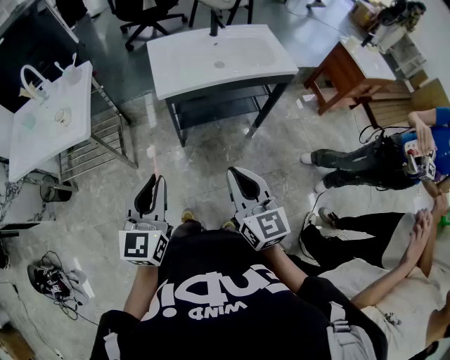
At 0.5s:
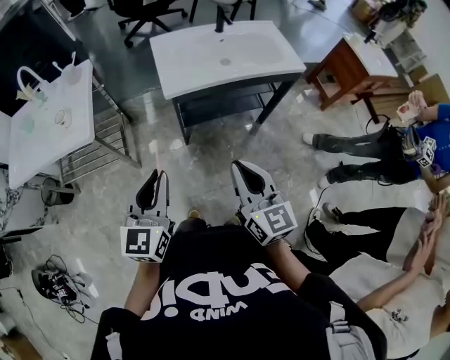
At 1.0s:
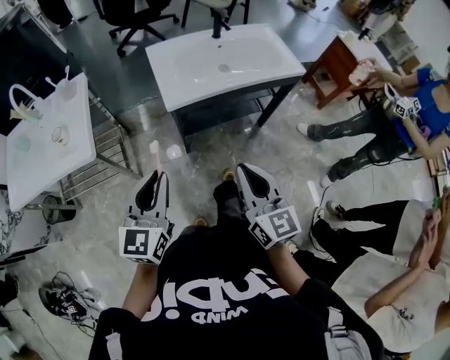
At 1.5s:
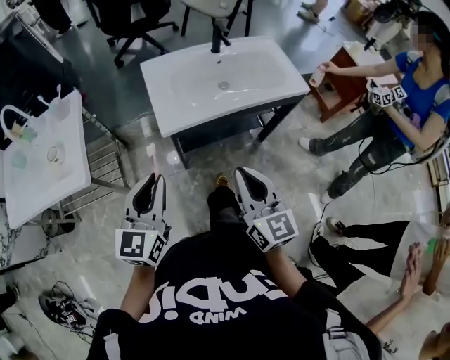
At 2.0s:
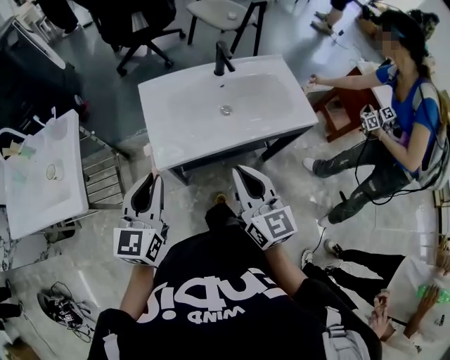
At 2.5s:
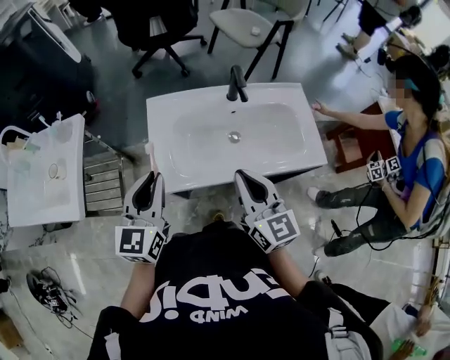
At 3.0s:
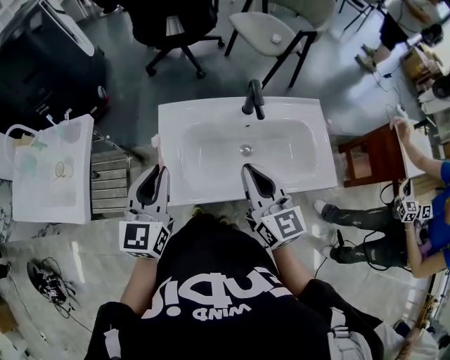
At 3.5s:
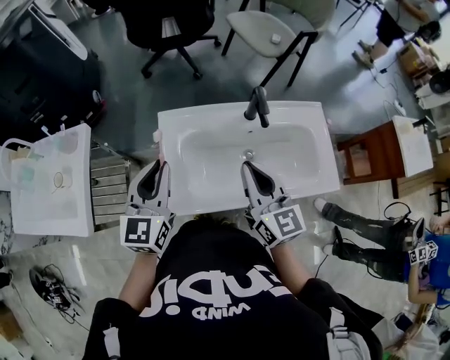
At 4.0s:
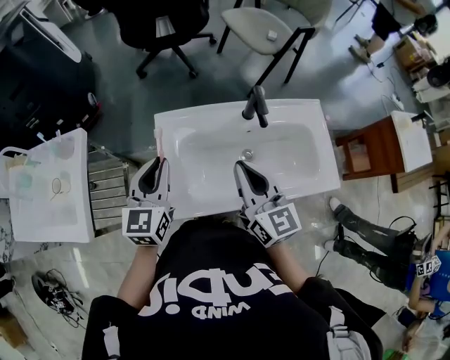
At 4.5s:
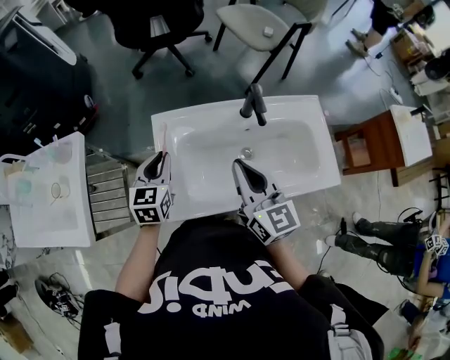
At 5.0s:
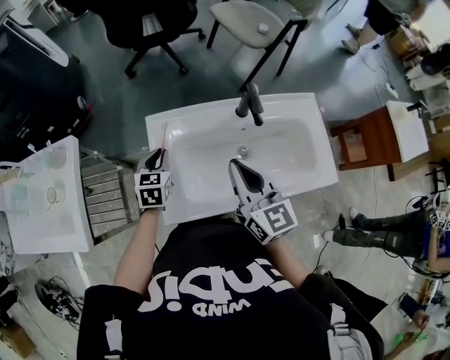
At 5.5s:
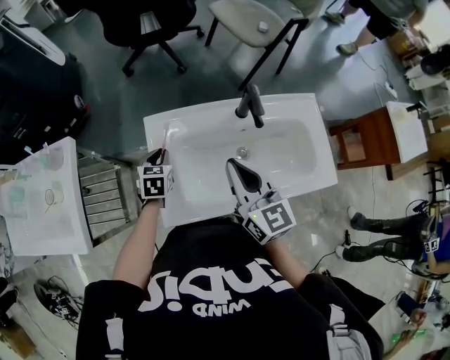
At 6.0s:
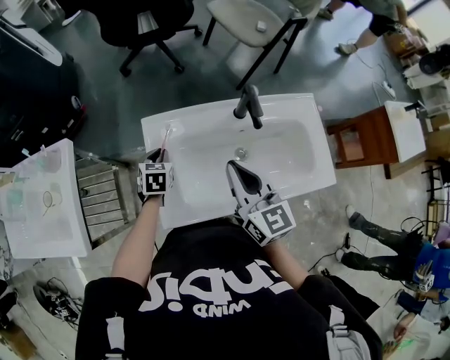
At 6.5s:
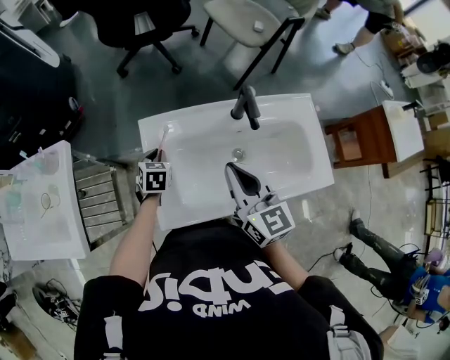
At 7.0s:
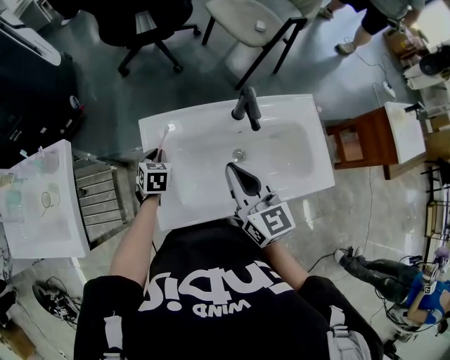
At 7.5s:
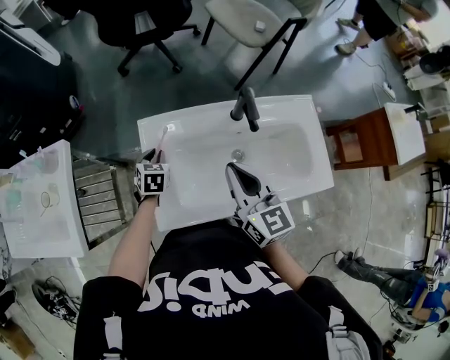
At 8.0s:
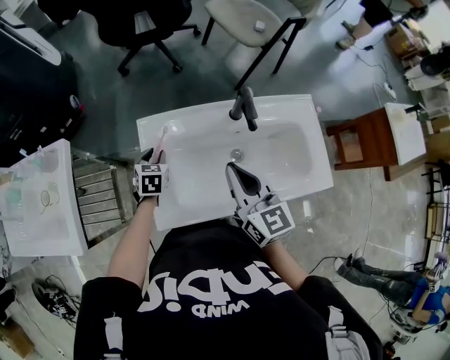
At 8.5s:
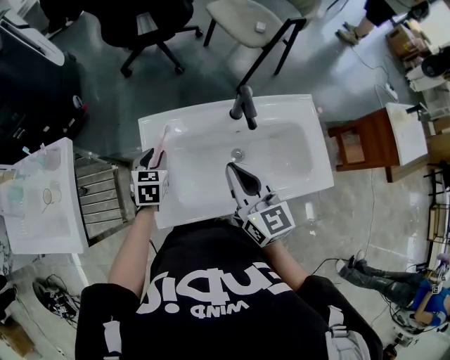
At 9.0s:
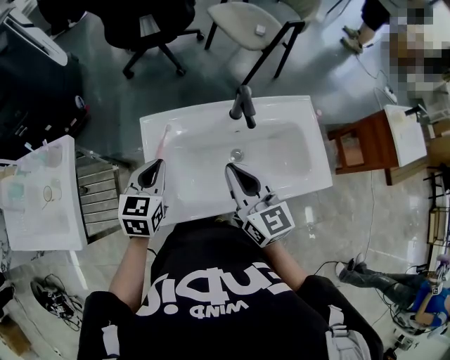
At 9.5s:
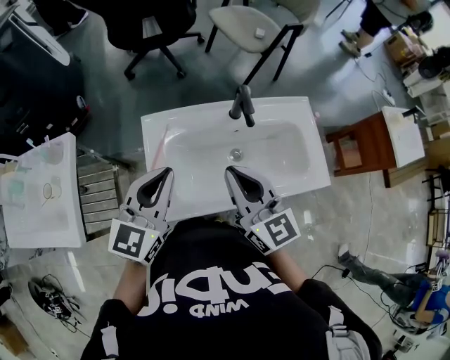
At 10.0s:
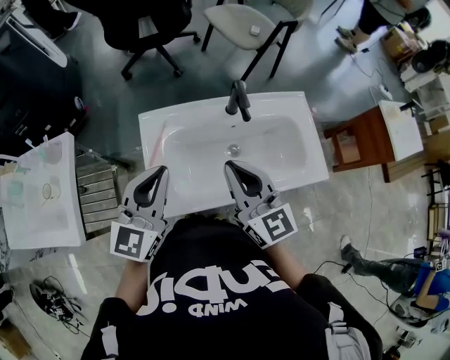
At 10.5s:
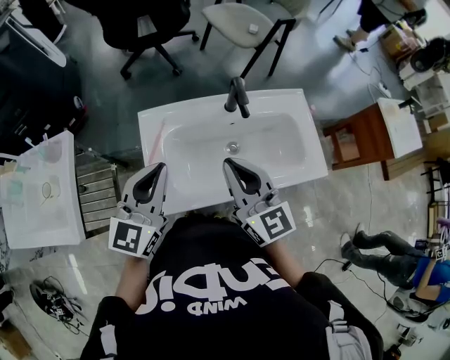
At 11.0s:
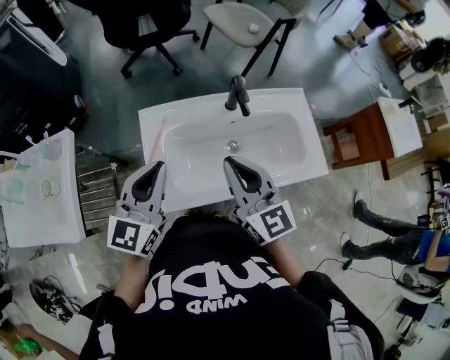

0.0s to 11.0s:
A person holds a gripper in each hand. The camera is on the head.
0.0s to 2.0s: Both grippers move forward, approximately 35 cm.
2.0s to 3.5s: The grippers both shift forward by about 25 cm.
3.5s to 5.5s: The left gripper is displaced downward and forward by about 25 cm, and tilts its fingers roughly 40 degrees downward, while the right gripper moves some 5 cm.
5.5s to 7.5s: There are only small adjustments of the grippers.
7.5s to 9.0s: The left gripper goes roughly 20 cm upward and backward, and turns by about 20 degrees.
9.0s to 11.0s: The left gripper travels upward and backward by approximately 15 cm, and turns by about 30 degrees, while the right gripper is displaced upward by roughly 5 cm.

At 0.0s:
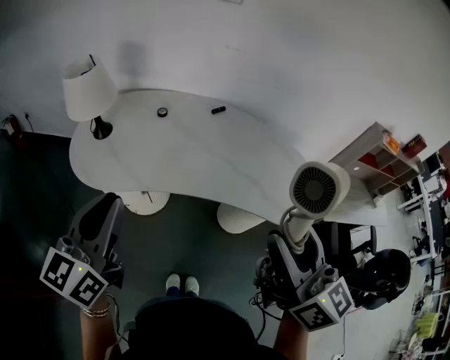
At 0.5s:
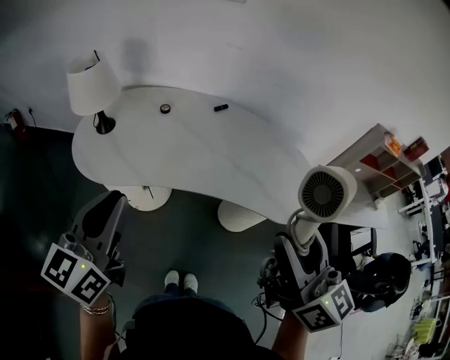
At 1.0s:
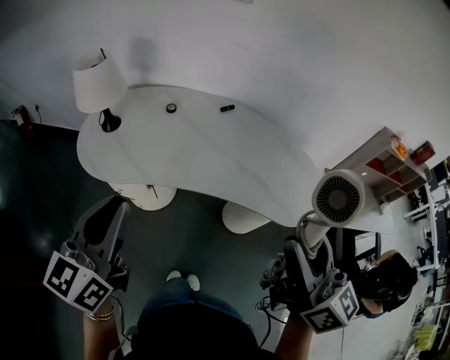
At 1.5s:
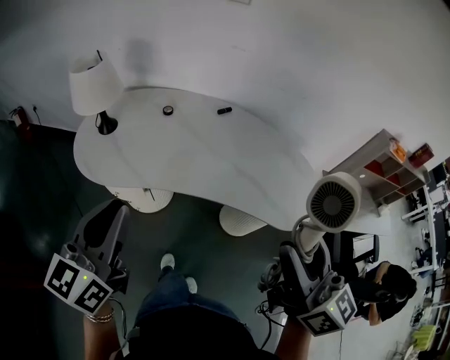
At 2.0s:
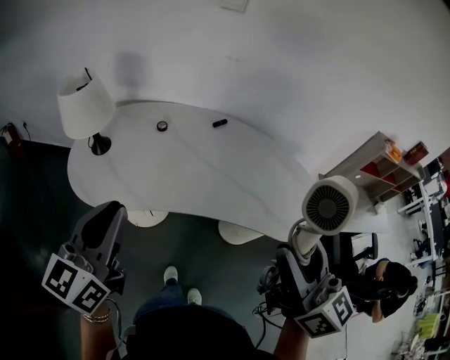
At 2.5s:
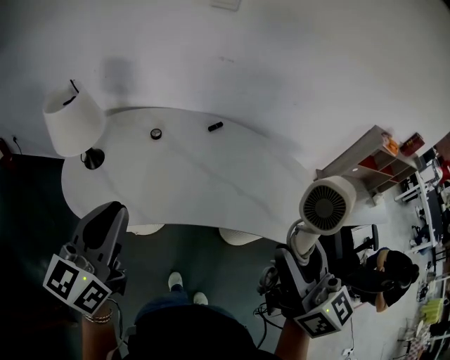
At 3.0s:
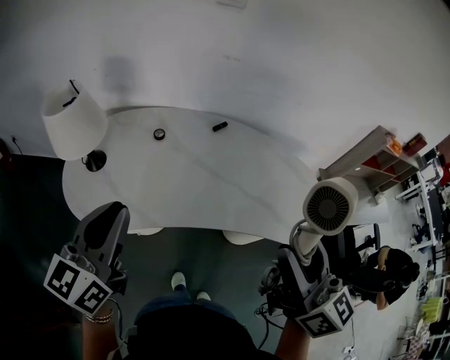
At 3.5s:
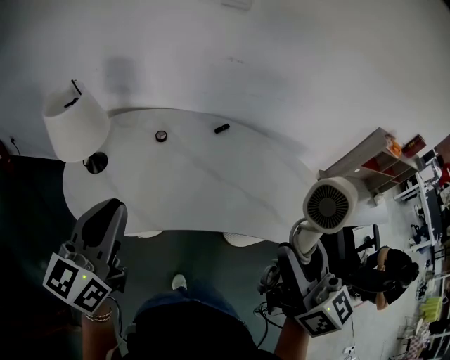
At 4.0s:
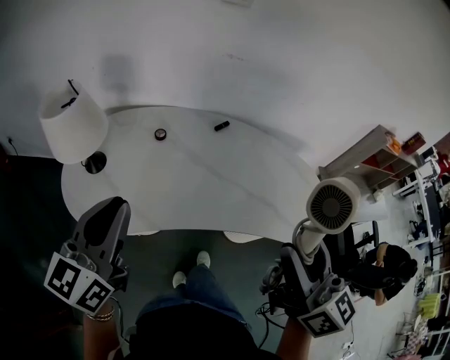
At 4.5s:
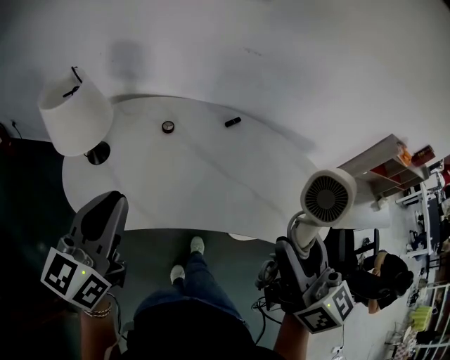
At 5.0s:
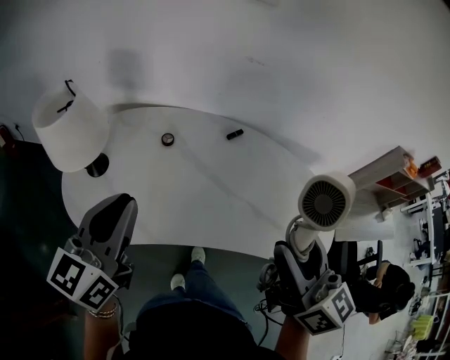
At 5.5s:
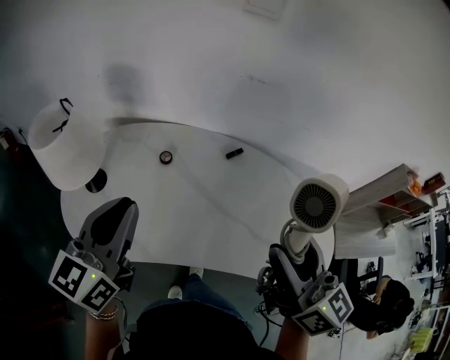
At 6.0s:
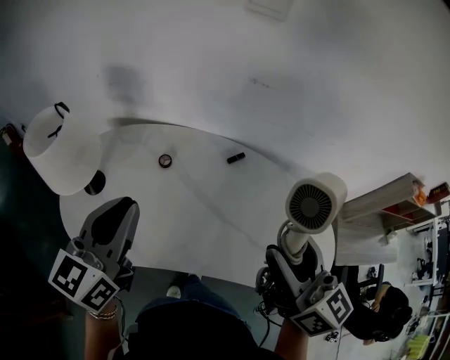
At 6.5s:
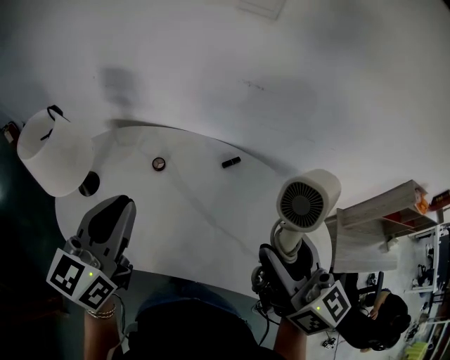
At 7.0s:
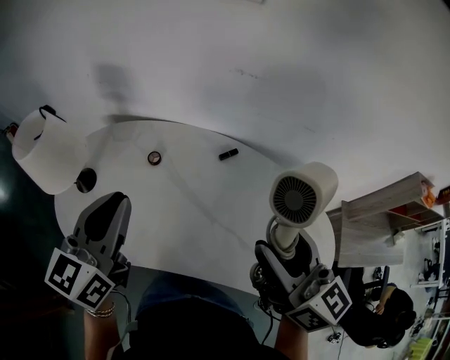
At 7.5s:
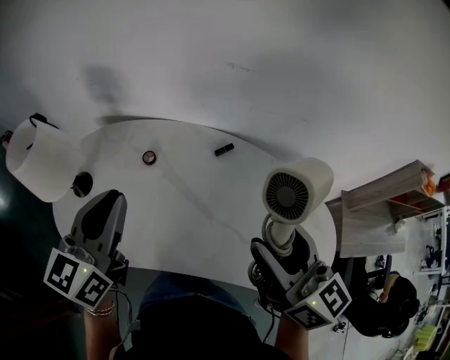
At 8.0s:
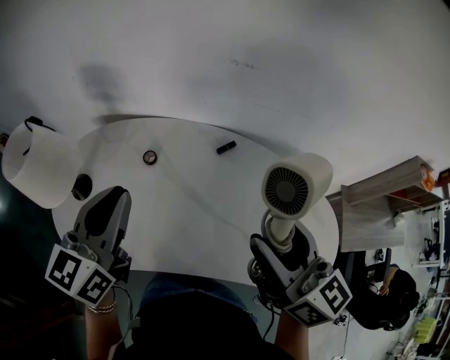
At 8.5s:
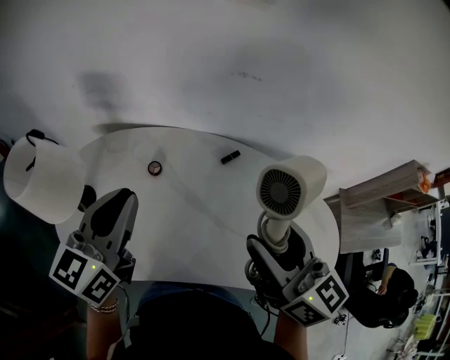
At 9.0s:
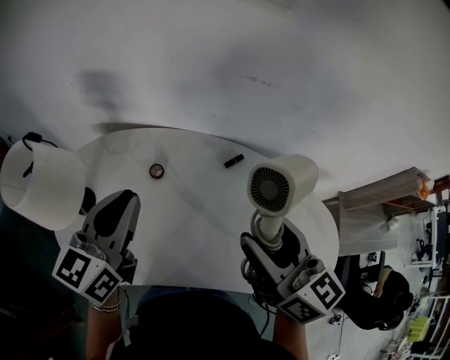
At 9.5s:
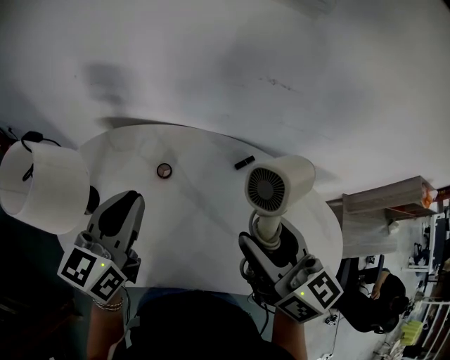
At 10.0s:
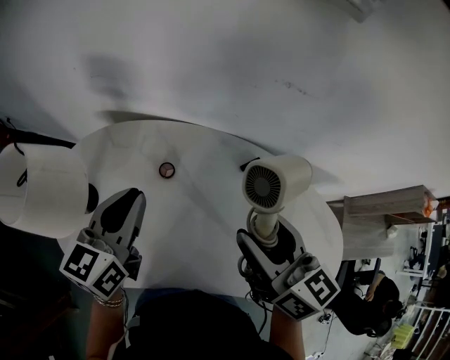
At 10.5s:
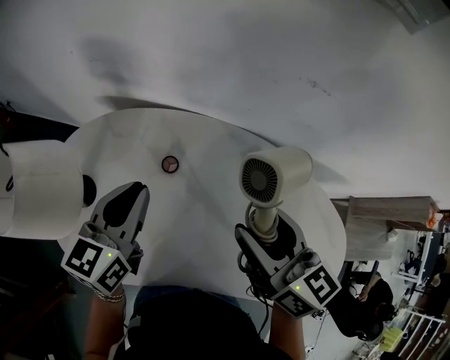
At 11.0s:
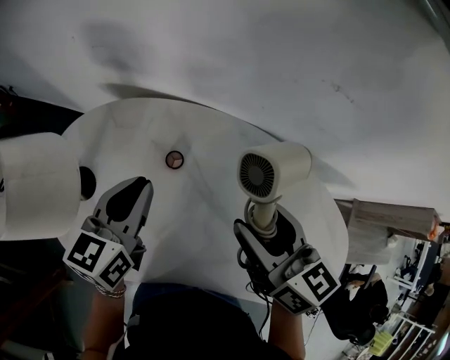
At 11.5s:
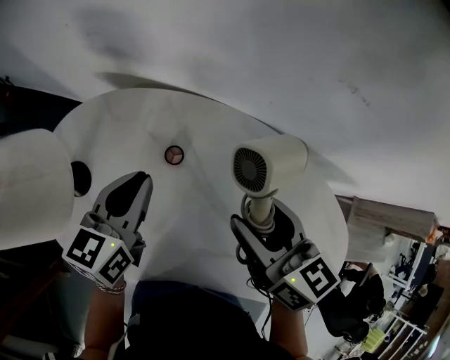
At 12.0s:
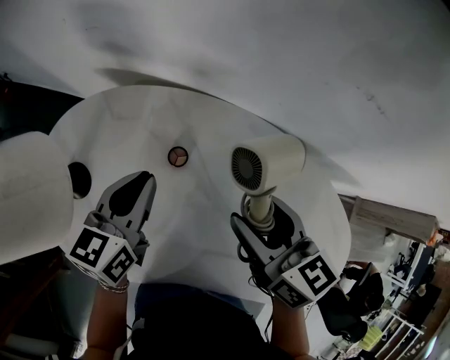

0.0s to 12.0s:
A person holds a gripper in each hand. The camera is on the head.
0.0s to 2.0s: The left gripper moves forward, approximately 5 cm.
2.0s to 4.0s: The left gripper is displaced forward by some 10 cm, while the right gripper is displaced forward and to the left by approximately 10 cm.
4.0s to 6.0s: The two grippers go roughly 15 cm forward.
6.0s to 8.0s: The left gripper moves forward, some 5 cm; the right gripper changes place by some 5 cm.
8.0s to 10.0s: The right gripper moves forward, to the left and downward, about 15 cm, while the left gripper shifts roughly 15 cm forward, downward and to the left.
10.0s to 12.0s: Both grippers travel together downward and forward, some 15 cm.

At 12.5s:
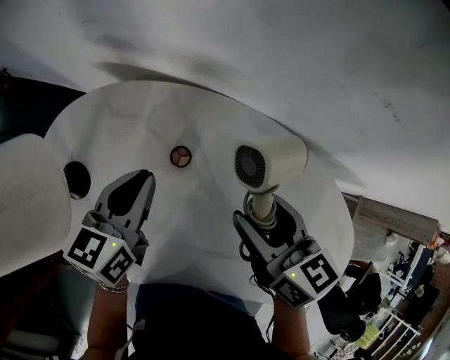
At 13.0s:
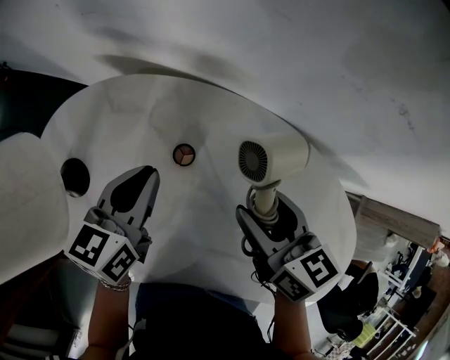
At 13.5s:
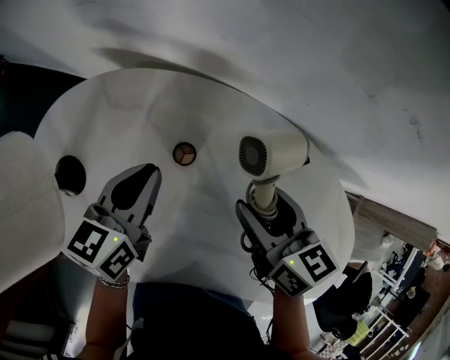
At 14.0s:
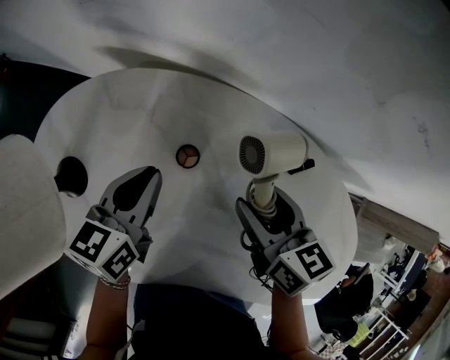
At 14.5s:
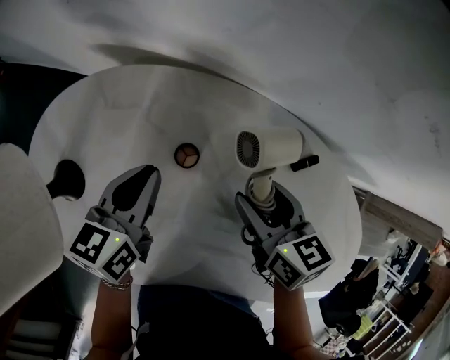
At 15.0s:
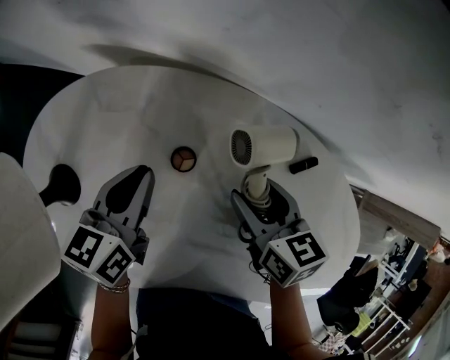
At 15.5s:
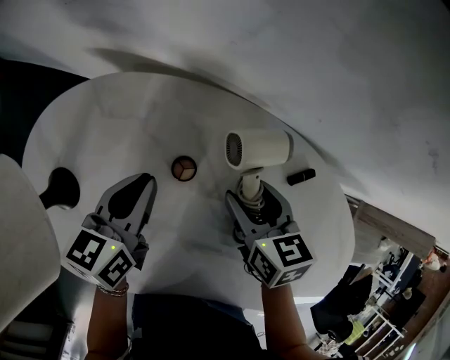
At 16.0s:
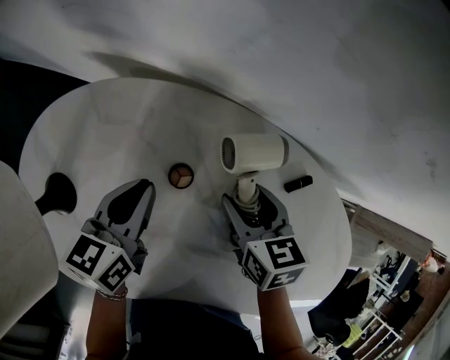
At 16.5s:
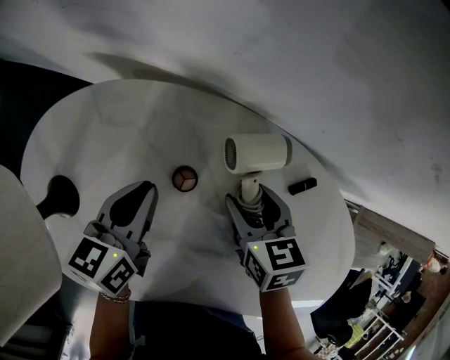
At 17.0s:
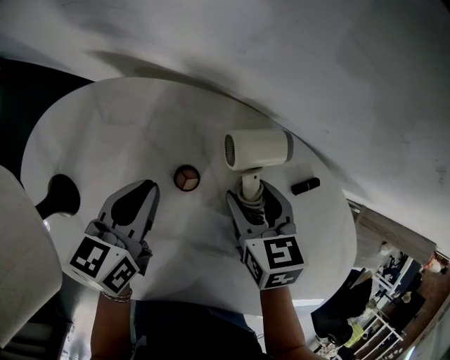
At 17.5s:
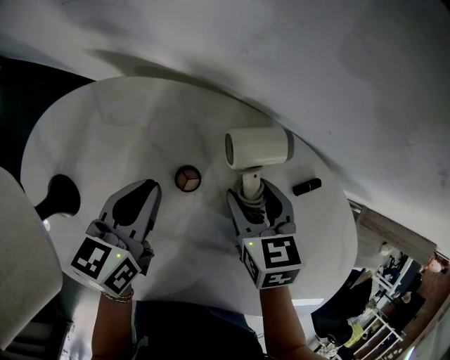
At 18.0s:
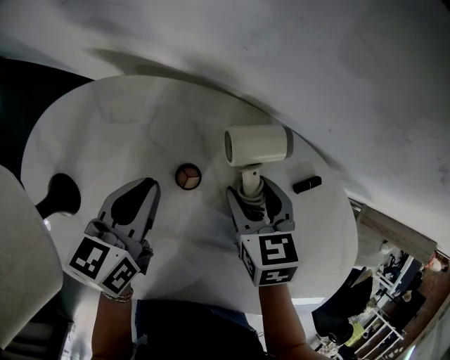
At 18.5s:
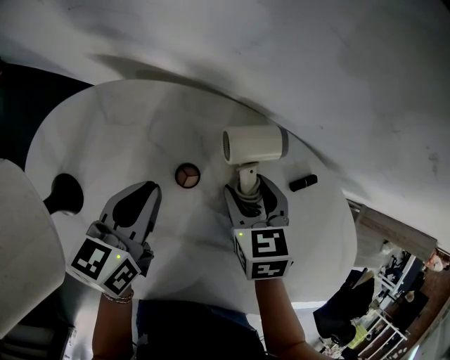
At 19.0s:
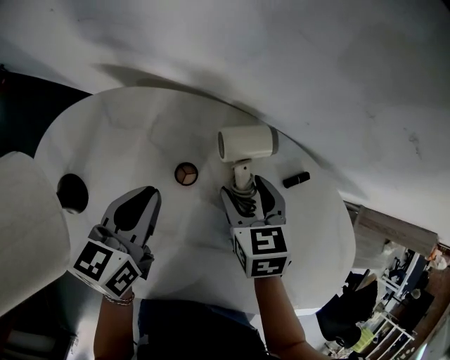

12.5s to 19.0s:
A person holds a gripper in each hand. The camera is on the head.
12.5s to 14.5s: The right gripper goes about 10 cm downward; the left gripper travels downward by approximately 5 cm.
14.5s to 17.0s: The right gripper is displaced downward by roughly 5 cm.
17.0s to 19.0s: The grippers make only small movements.
